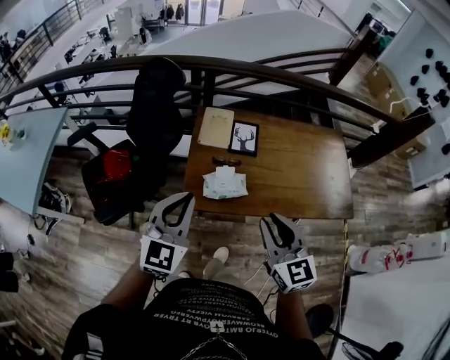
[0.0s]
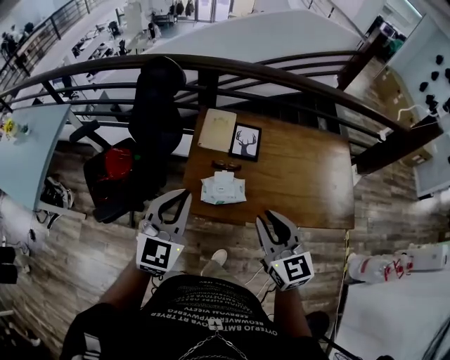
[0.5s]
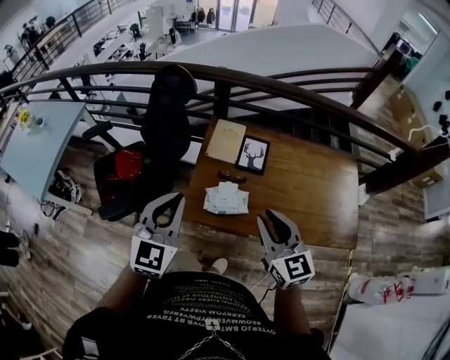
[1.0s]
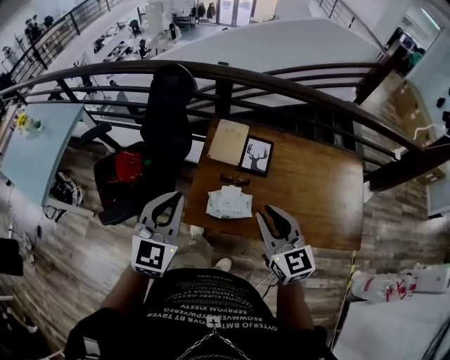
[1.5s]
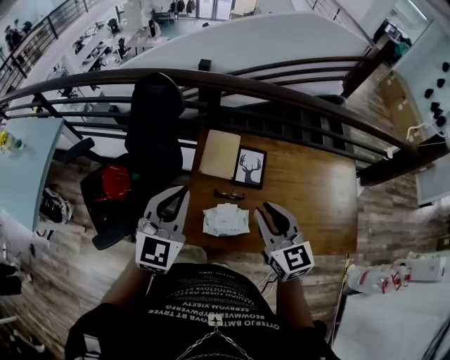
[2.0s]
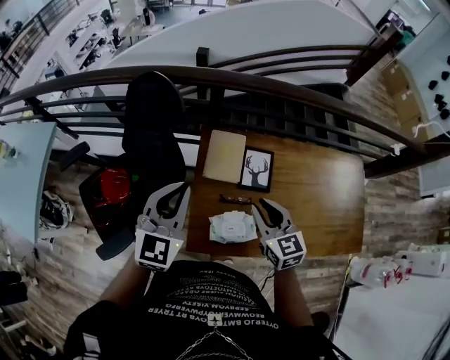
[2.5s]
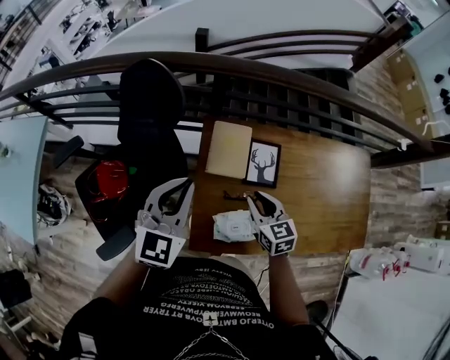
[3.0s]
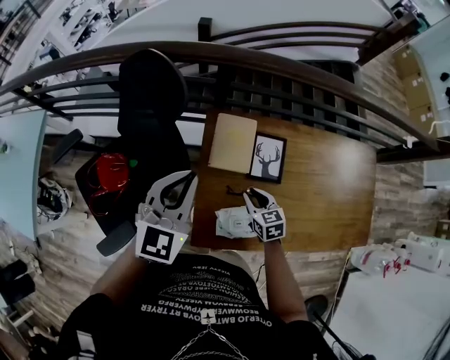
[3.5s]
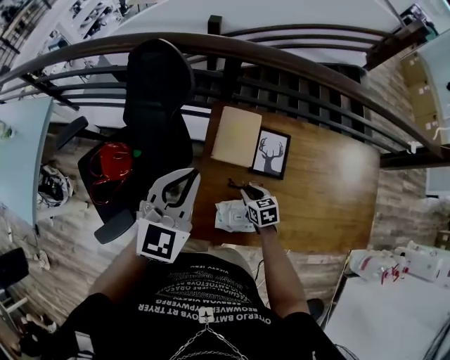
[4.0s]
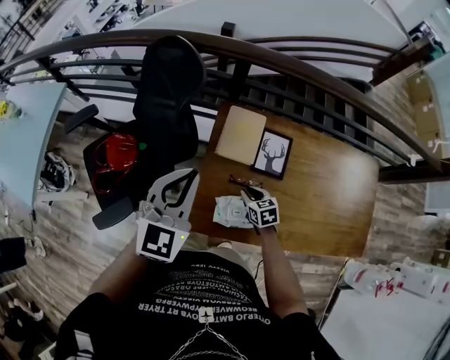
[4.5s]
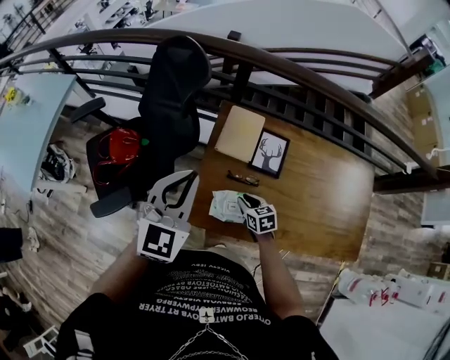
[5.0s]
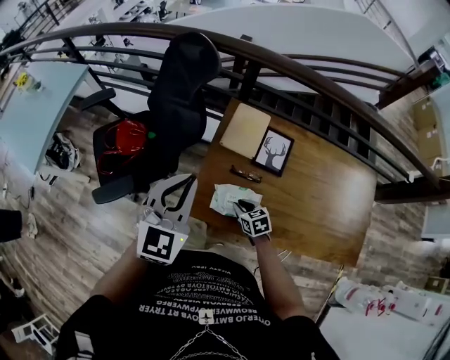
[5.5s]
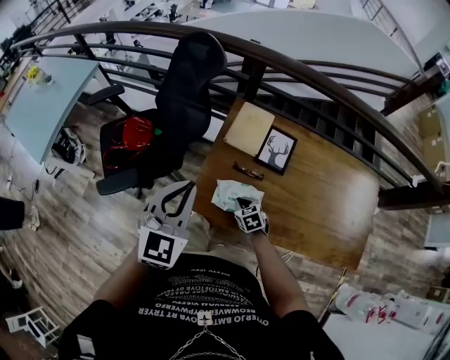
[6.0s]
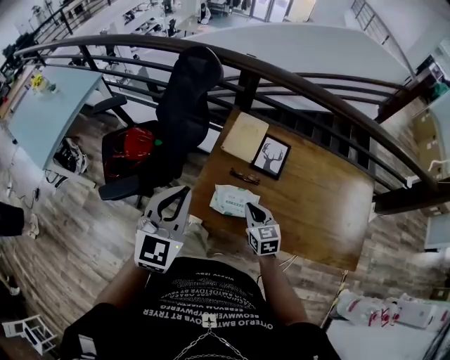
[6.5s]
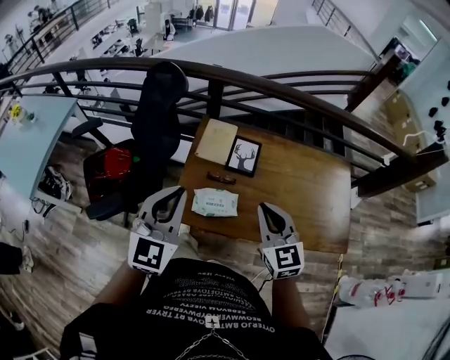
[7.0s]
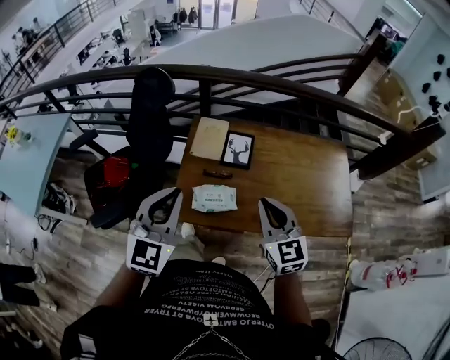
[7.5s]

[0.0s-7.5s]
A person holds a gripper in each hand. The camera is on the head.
0.0s to 2.0s: The grippers both shift forward by roughly 20 cm.
2.0s to 4.0s: The right gripper heads downward, covering some 35 cm, and points its fingers approximately 30 degrees further downward. The left gripper goes some 15 cm forward and downward.
4.0s to 5.5s: The grippers both shift backward by roughly 15 cm.
5.5s to 7.5s: The right gripper heads upward, covering approximately 35 cm, and points its fingers approximately 30 degrees further upward; the left gripper heads backward, upward and to the right, covering some 15 cm.

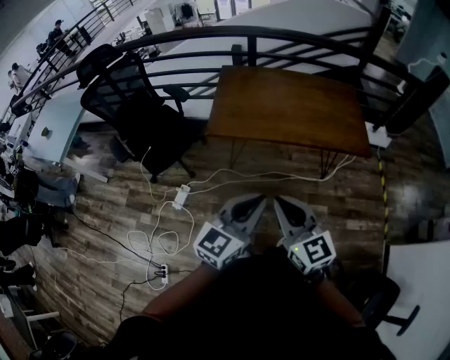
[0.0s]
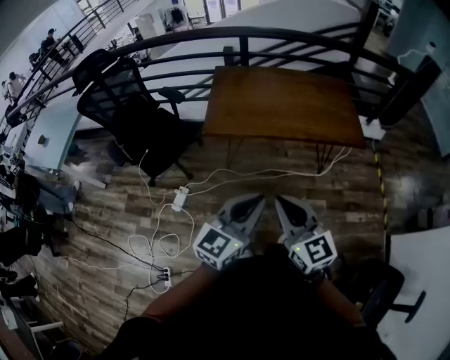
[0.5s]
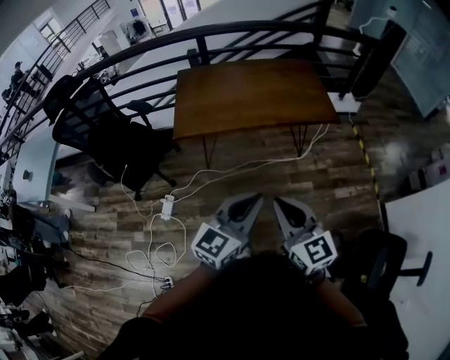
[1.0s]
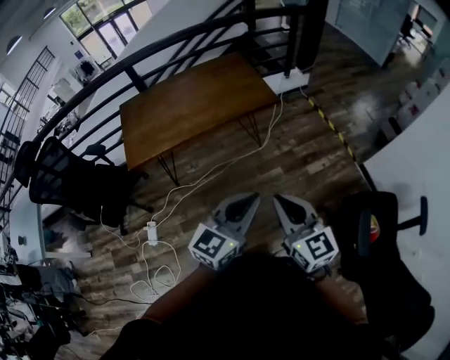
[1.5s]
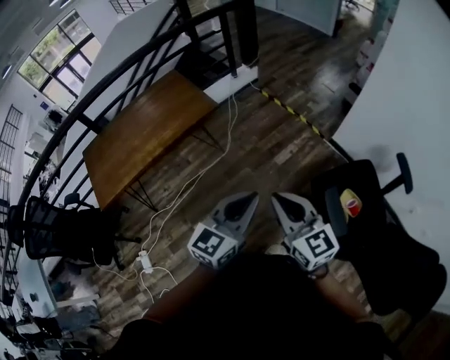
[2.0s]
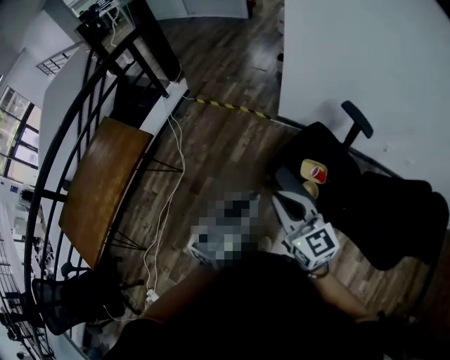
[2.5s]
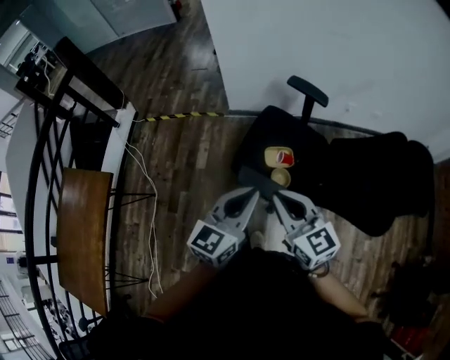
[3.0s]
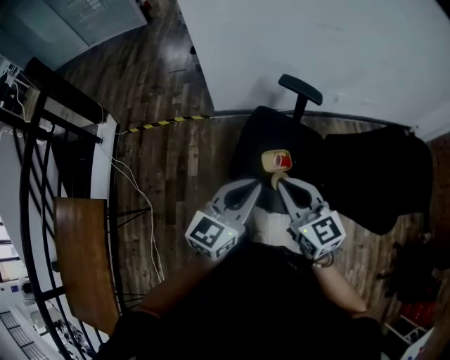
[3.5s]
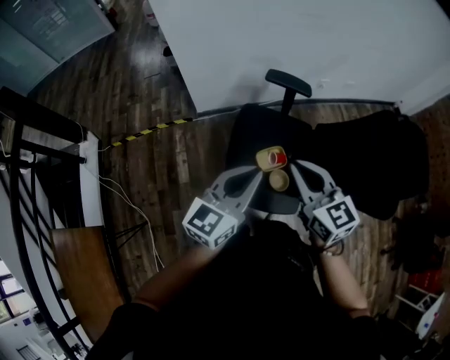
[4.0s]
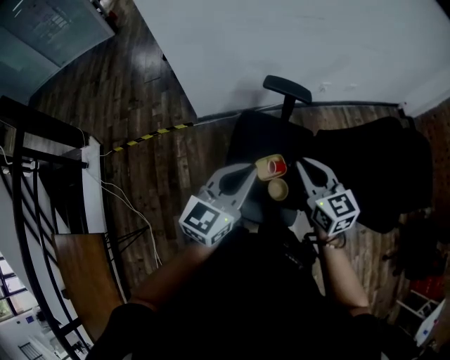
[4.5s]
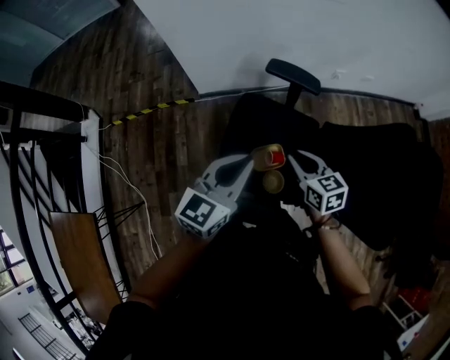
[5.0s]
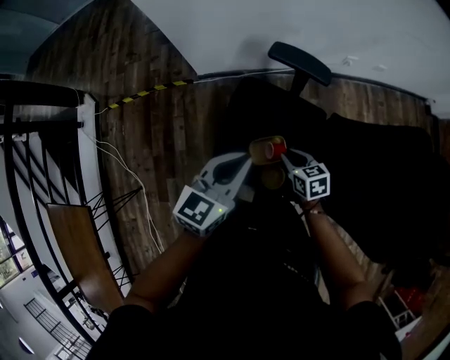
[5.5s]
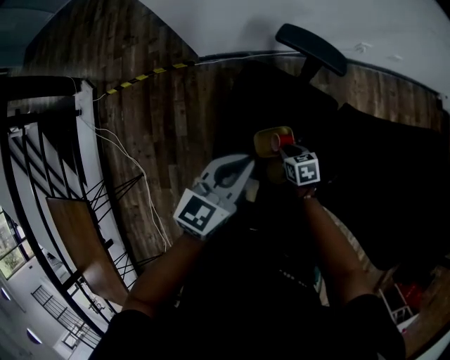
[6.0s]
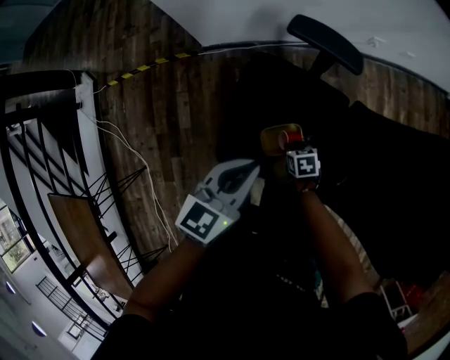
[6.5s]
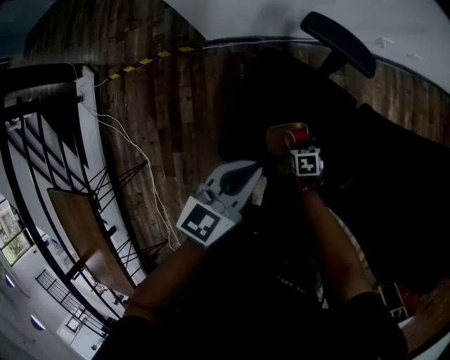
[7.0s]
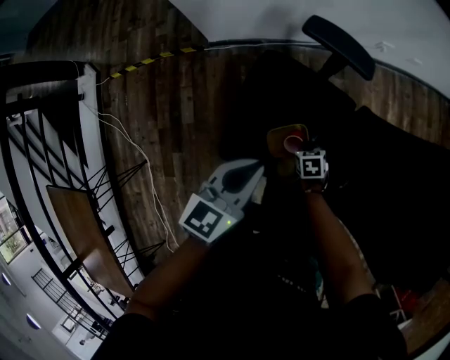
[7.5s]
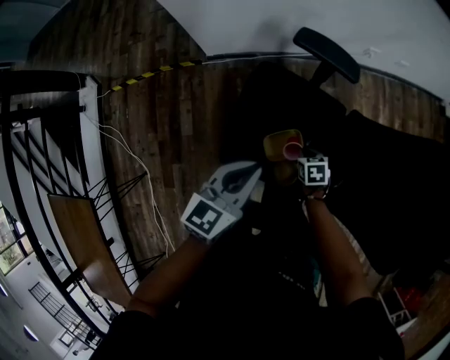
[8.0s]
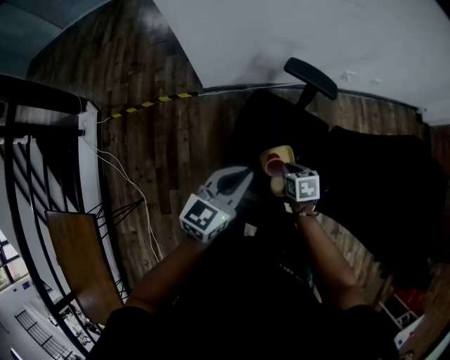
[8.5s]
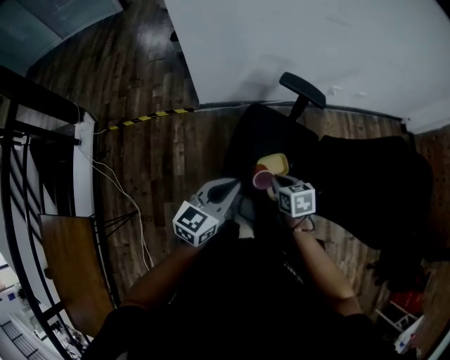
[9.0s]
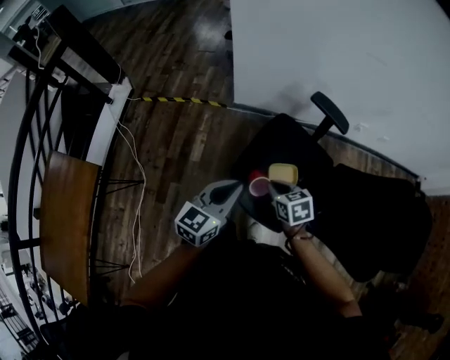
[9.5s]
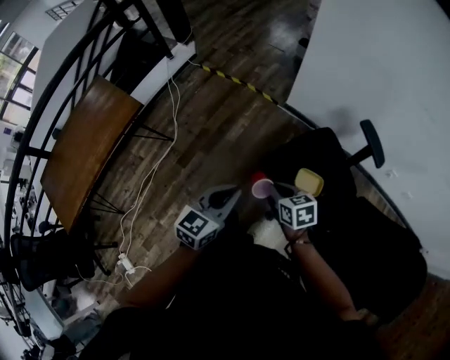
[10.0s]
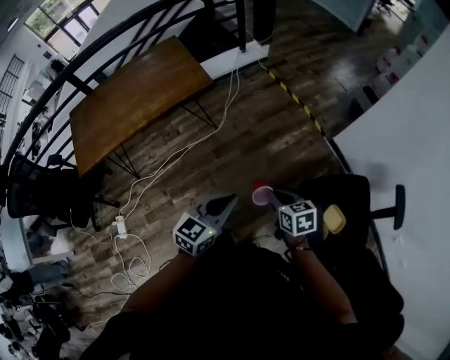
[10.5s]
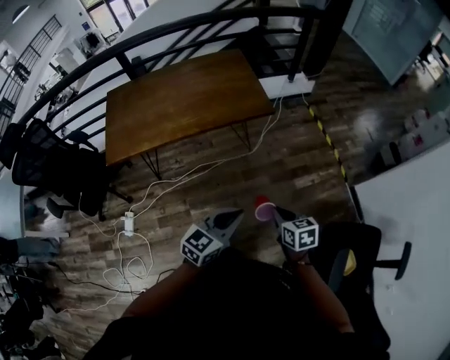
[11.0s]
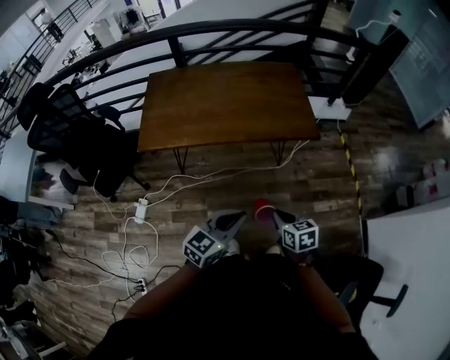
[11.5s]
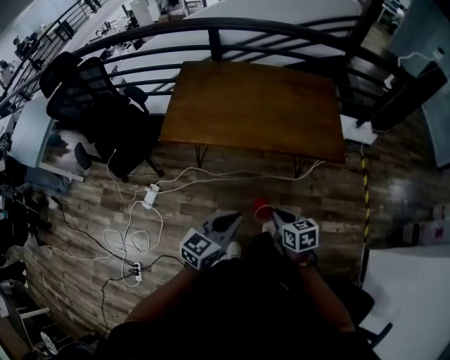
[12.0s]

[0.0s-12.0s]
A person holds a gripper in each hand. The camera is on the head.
0.0s to 2.0s: The pair of grippers is taken about 50 cm. The right gripper changes its angle by roughly 40 degrees. Meanwhile the left gripper turns by roughly 40 degrees.
2.0s to 4.0s: The two grippers travel together, roughly 40 cm. The right gripper changes its angle by some 60 degrees; the left gripper changes its angle by approximately 60 degrees.
4.0s to 6.0s: The right gripper moves downward, roughly 50 cm, and angles its fingers downward, by some 40 degrees, while the left gripper goes about 25 cm downward, forward and to the right, and changes its angle by some 20 degrees.
6.0s to 8.0s: The right gripper goes downward and returns, some 10 cm each way.
8.0s to 10.0s: The left gripper moves about 35 cm, and changes its angle by approximately 40 degrees; the right gripper moves approximately 40 cm, and turns by some 50 degrees.
10.0s to 12.0s: The pair of grippers is taken some 60 cm. The right gripper turns by roughly 60 degrees, while the left gripper swivels roughly 60 degrees.

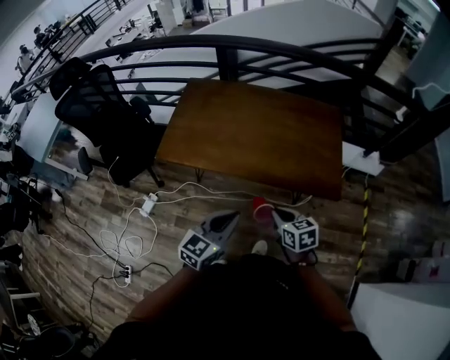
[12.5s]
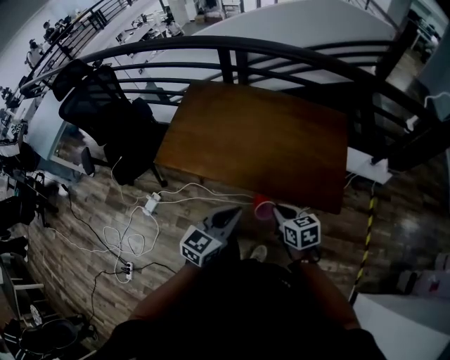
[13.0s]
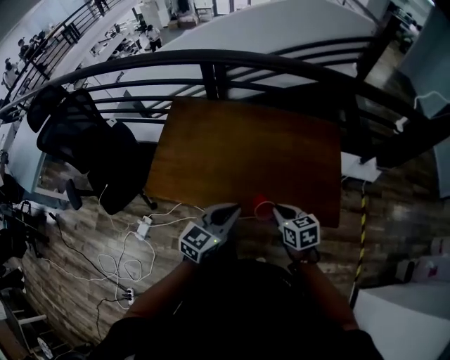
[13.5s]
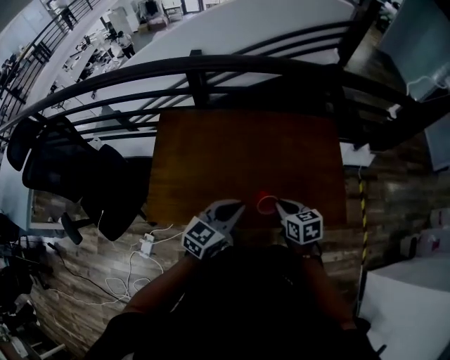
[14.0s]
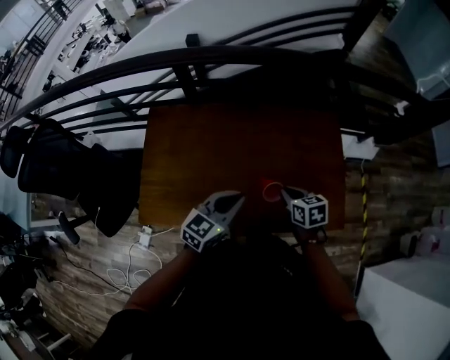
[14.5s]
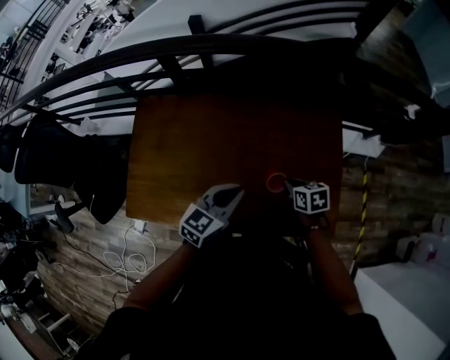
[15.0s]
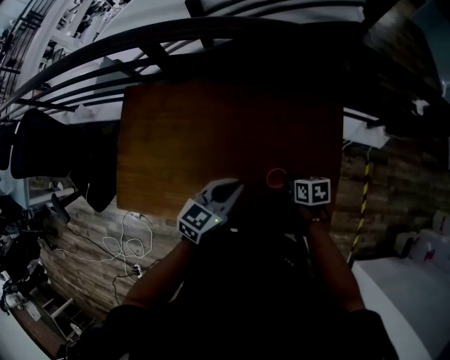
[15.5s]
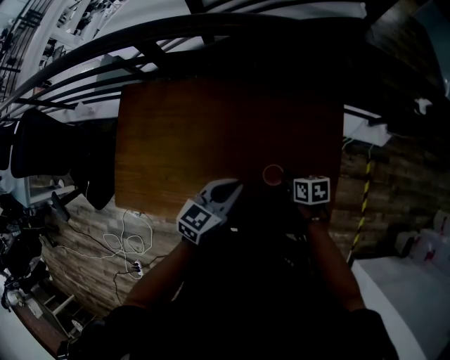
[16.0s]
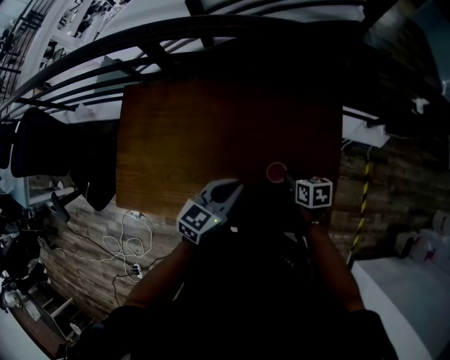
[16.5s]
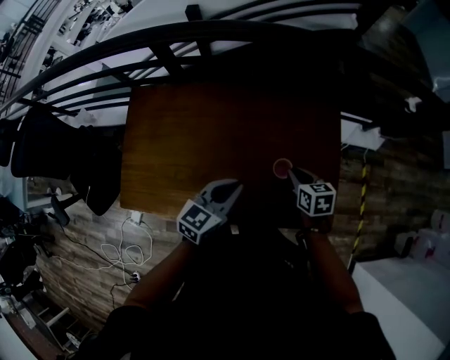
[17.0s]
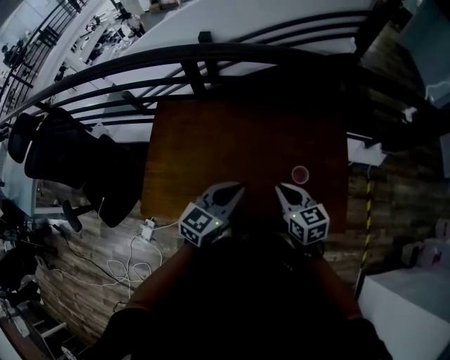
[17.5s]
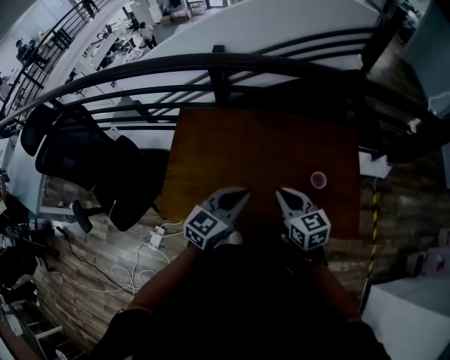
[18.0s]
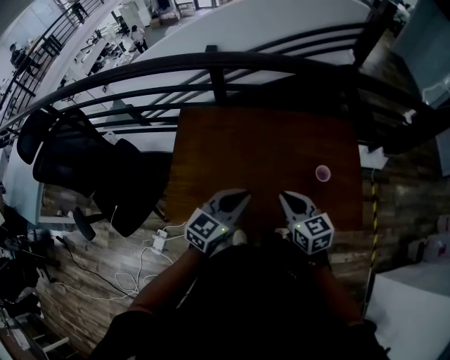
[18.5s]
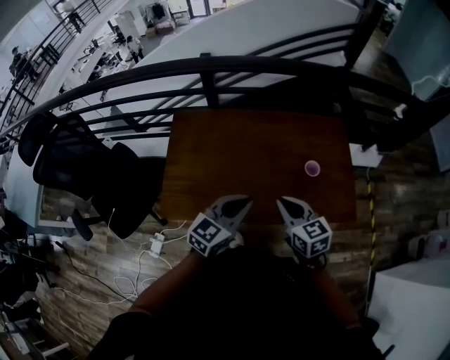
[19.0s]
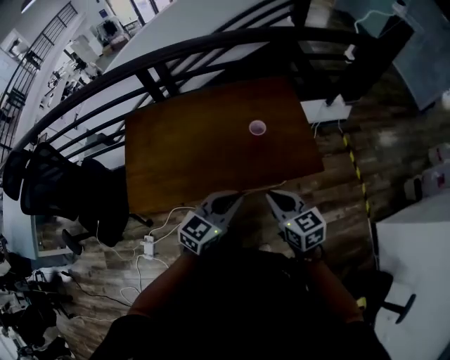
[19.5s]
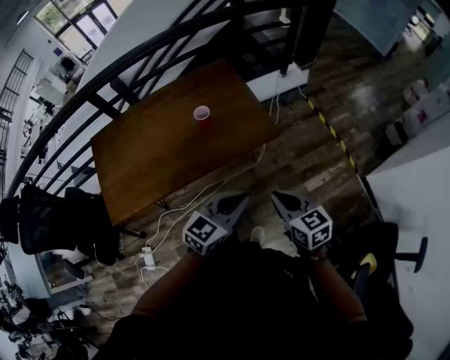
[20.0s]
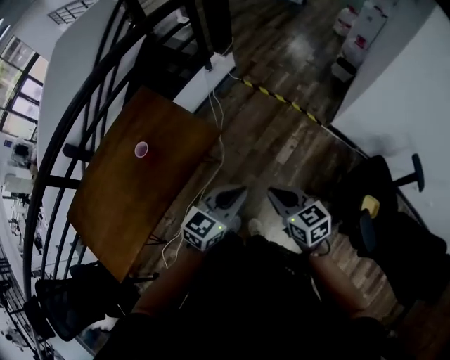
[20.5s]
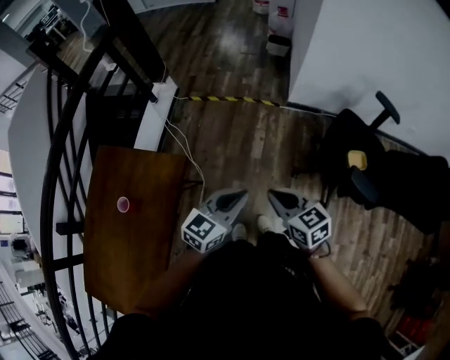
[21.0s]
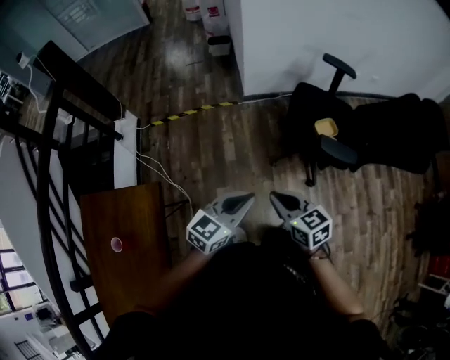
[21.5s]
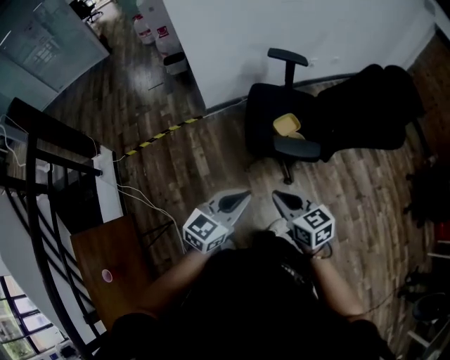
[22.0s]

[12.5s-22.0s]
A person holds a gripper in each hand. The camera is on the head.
12.5s to 14.5s: The grippers both shift forward by some 35 cm.
14.5s to 16.5s: The right gripper is displaced to the right, downward and forward by approximately 20 cm. The left gripper is displaced to the right, forward and downward by some 15 cm.
16.5s to 18.0s: The left gripper goes roughly 25 cm to the left, upward and backward; the right gripper travels to the left, upward and backward by about 35 cm, and rotates about 40 degrees.
18.0s to 20.0s: Both grippers are carried some 40 cm. The left gripper swivels about 30 degrees, while the right gripper changes its angle by roughly 30 degrees.
20.0s to 22.0s: The pair of grippers is taken approximately 40 cm. The left gripper turns by roughly 80 degrees. The right gripper turns by roughly 80 degrees.
